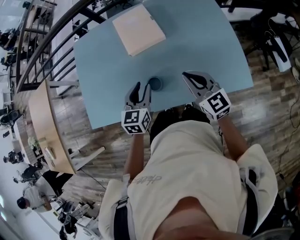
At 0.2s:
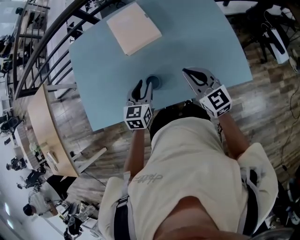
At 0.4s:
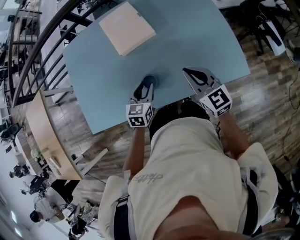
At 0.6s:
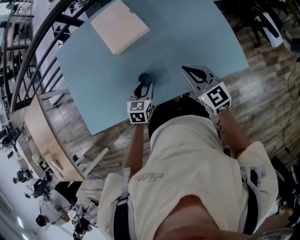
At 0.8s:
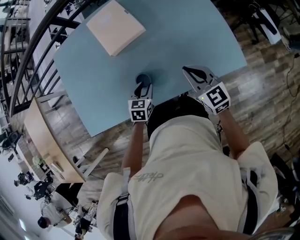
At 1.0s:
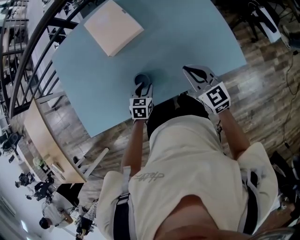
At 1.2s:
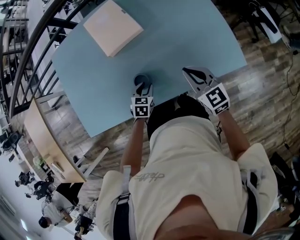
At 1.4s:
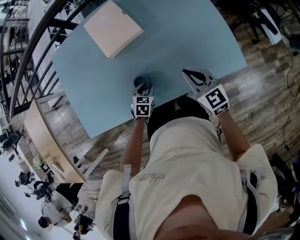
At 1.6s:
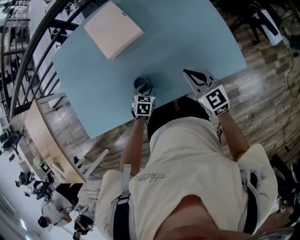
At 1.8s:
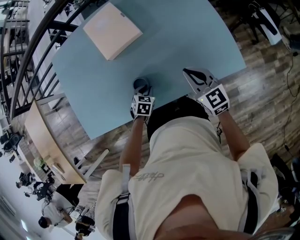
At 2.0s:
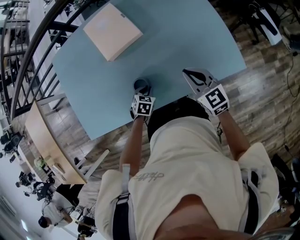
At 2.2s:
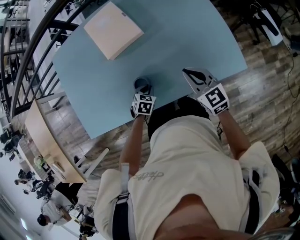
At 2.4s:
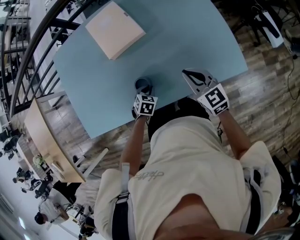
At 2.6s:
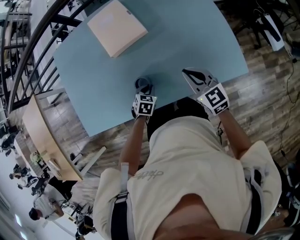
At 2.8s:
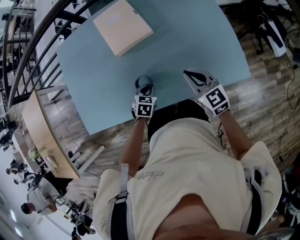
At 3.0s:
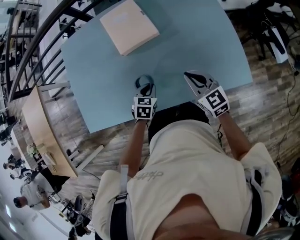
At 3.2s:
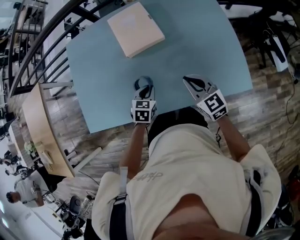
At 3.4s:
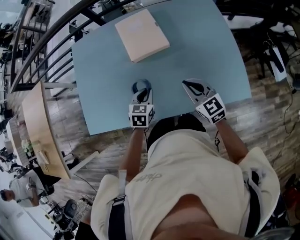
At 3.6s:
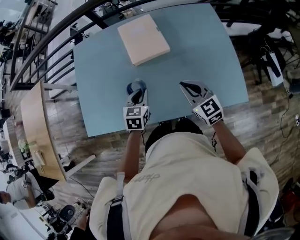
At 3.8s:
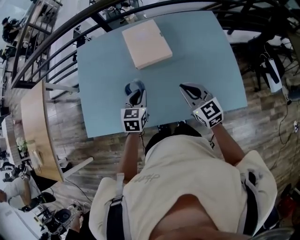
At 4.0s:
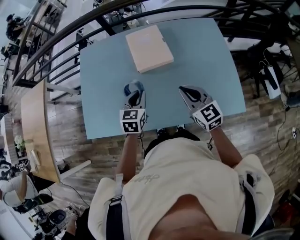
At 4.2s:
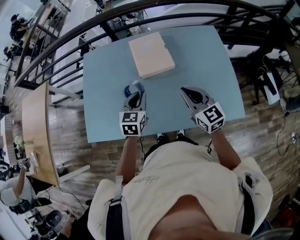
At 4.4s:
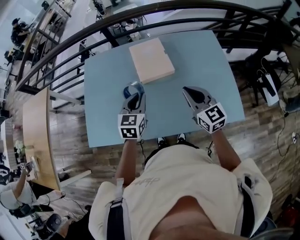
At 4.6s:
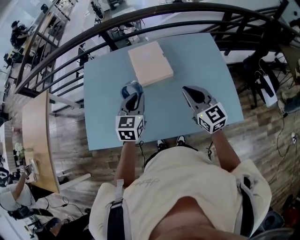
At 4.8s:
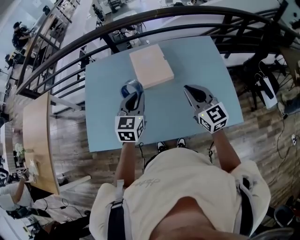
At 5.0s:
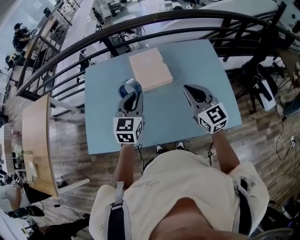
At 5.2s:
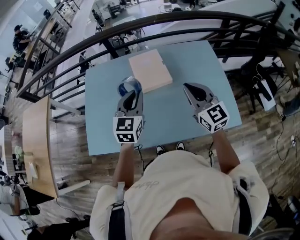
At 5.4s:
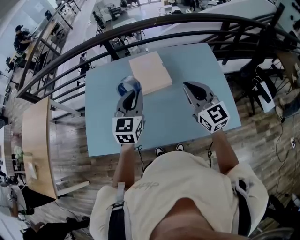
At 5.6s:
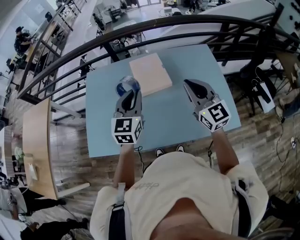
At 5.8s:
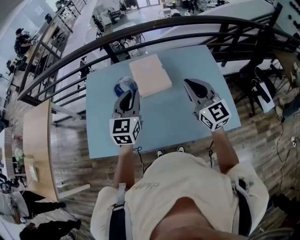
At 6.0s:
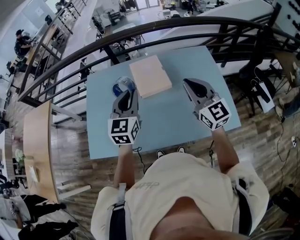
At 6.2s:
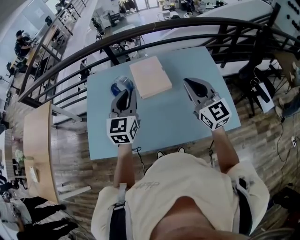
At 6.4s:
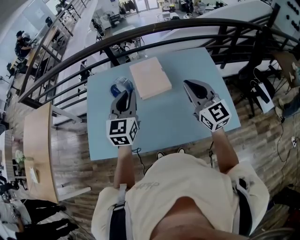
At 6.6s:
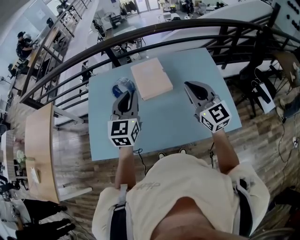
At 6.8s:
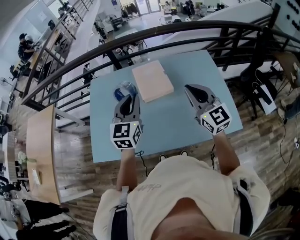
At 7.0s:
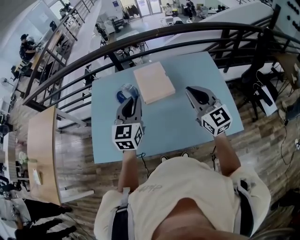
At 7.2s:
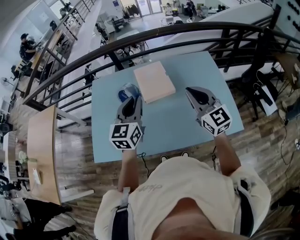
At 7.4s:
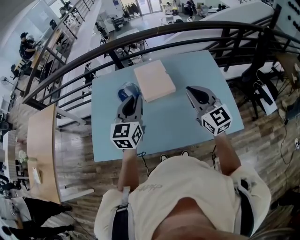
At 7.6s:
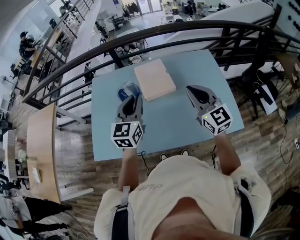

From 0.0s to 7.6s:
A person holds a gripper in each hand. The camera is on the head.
From 0.0s to 1.6s: The right gripper moves downward and to the right, approximately 10 cm, while the left gripper goes roughly 25 cm downward, and tilts its fingers approximately 30 degrees downward.
From 1.6s to 3.0s: The left gripper goes approximately 5 cm upward, and closes.
From 3.0s to 4.6s: The left gripper heads upward, covering about 25 cm, and points its fingers roughly 30 degrees further upward. Meanwhile the right gripper shifts roughly 15 cm upward.
From 4.6s to 6.0s: The two grippers go approximately 10 cm upward.
From 6.0s to 7.6s: The grippers make only small movements.

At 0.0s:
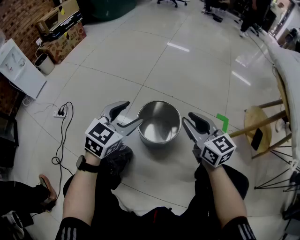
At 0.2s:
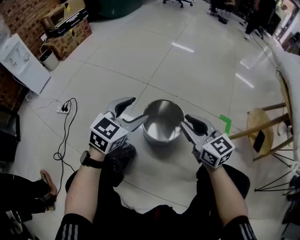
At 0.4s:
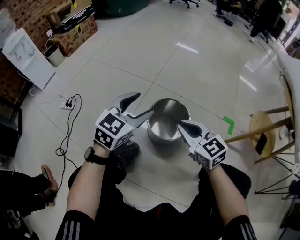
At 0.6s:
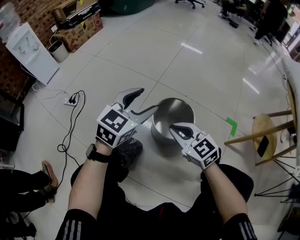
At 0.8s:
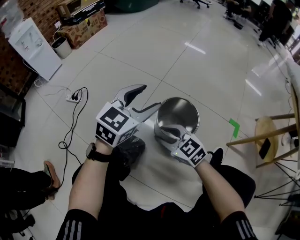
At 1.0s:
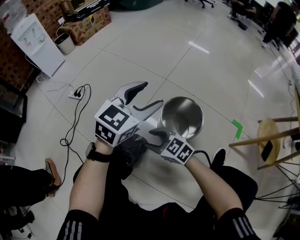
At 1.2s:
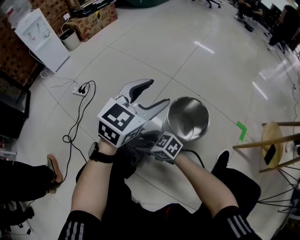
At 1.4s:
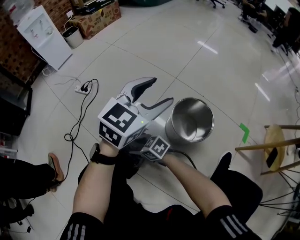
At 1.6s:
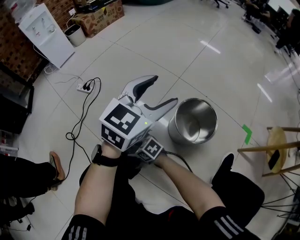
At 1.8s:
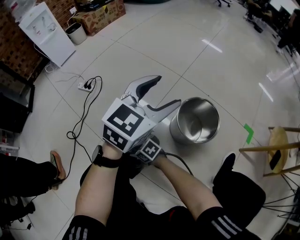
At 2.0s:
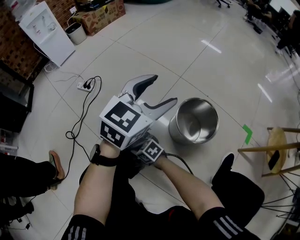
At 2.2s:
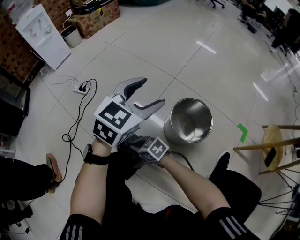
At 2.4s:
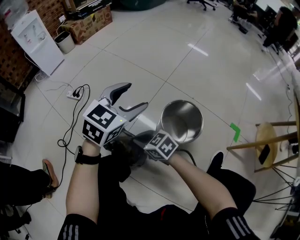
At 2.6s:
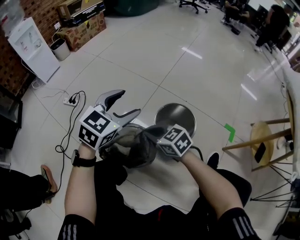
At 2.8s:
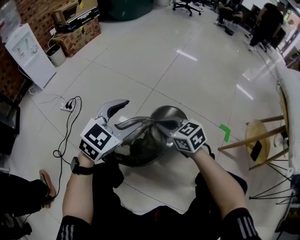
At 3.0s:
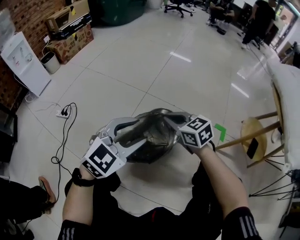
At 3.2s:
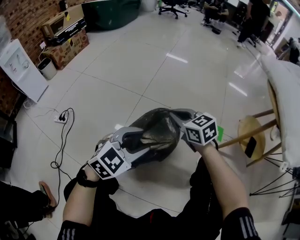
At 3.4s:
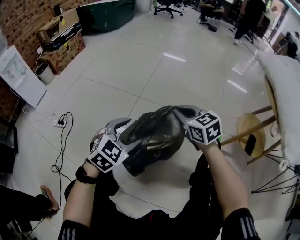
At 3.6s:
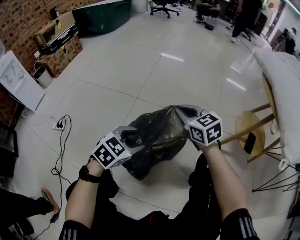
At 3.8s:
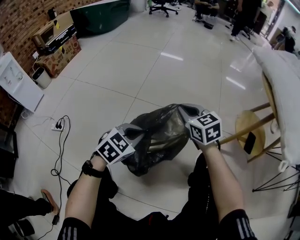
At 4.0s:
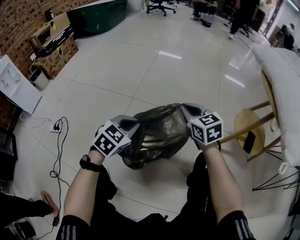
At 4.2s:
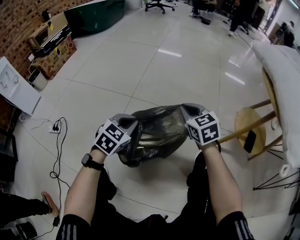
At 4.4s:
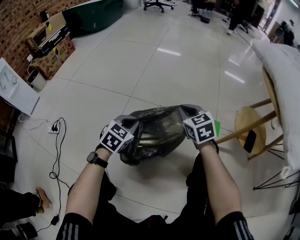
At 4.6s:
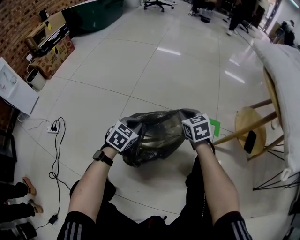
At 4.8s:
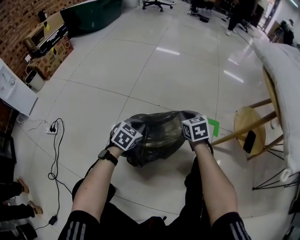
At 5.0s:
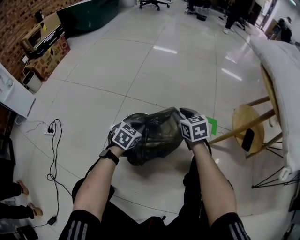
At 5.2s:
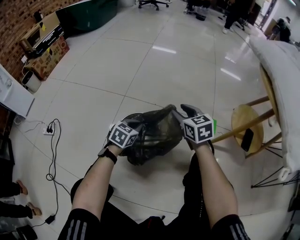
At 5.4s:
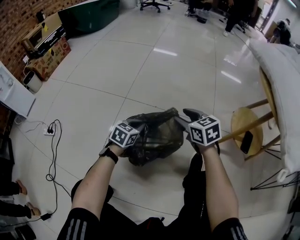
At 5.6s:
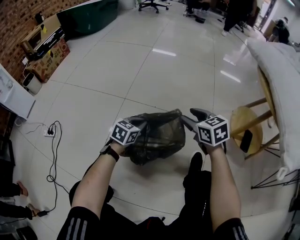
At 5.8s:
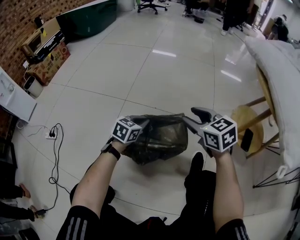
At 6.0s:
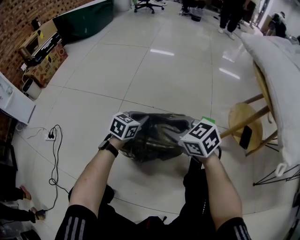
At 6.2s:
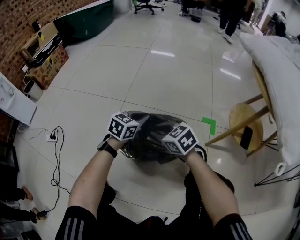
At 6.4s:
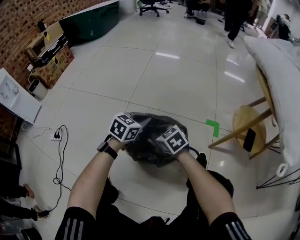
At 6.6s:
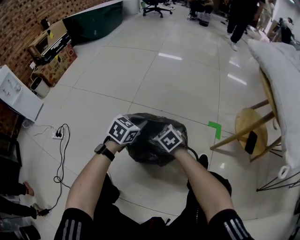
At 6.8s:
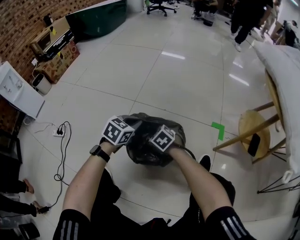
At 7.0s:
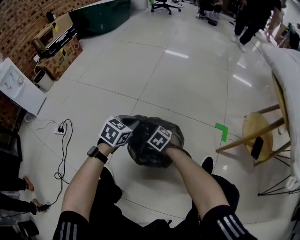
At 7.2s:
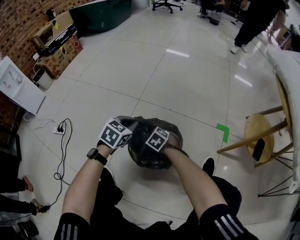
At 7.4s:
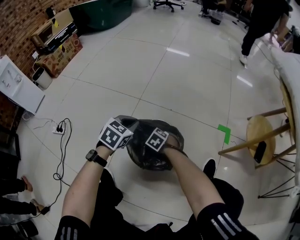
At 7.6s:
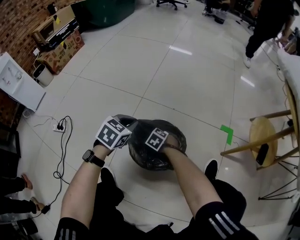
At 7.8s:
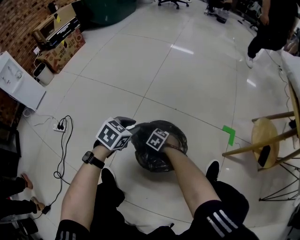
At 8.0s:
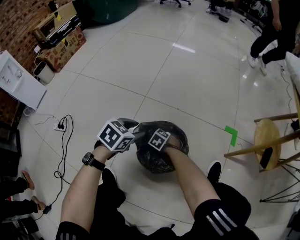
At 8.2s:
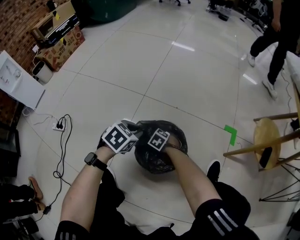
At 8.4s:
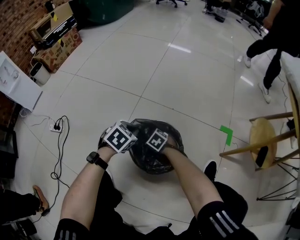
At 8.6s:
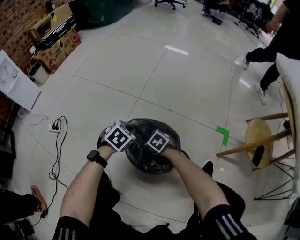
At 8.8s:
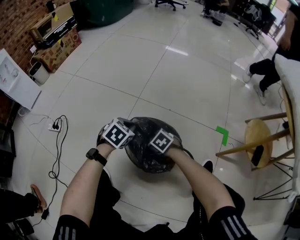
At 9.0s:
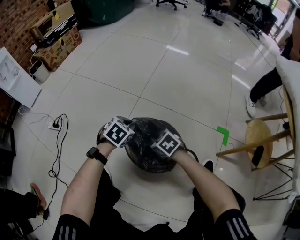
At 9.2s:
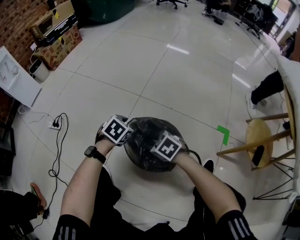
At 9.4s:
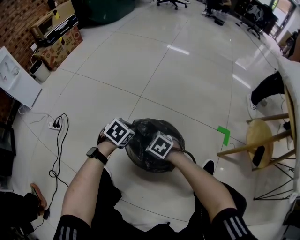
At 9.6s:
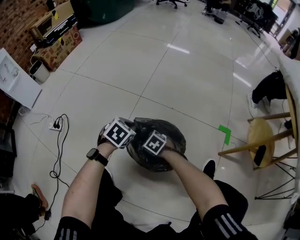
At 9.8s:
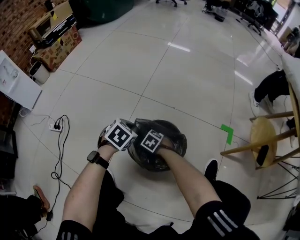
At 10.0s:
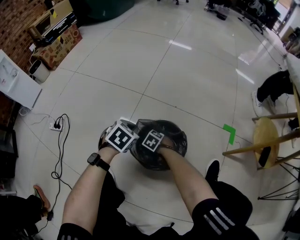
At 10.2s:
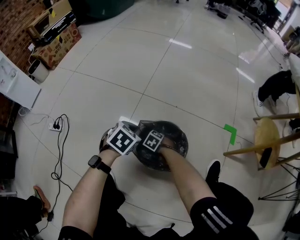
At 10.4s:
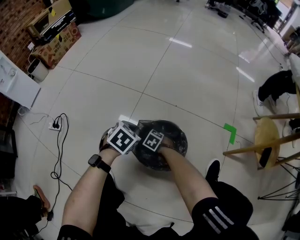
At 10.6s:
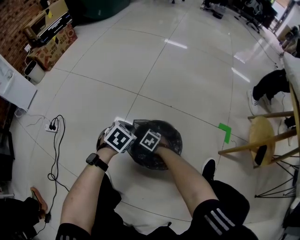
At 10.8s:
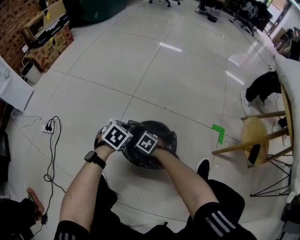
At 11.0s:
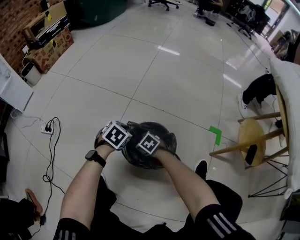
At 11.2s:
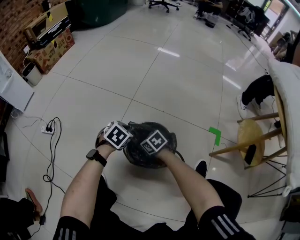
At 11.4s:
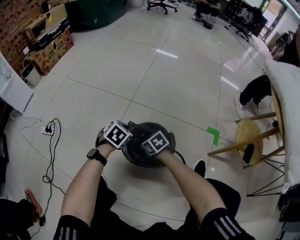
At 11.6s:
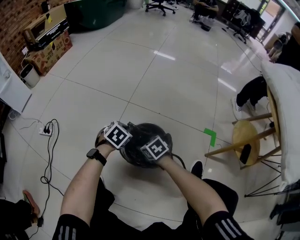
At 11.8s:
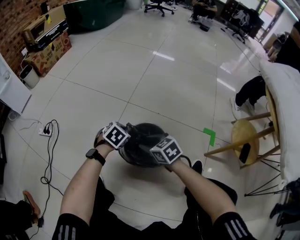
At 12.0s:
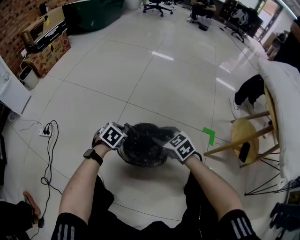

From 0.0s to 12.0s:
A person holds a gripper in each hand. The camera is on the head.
From 0.0s to 1.6s: The right gripper changes place by some 50 cm, swivels roughly 70 degrees, and opens its fingers; the left gripper changes place by roughly 10 cm.
From 1.6s to 3.0s: The left gripper ends up about 15 cm from where it was, and swivels roughly 30 degrees. The right gripper changes place by approximately 40 cm, rotates about 40 degrees, and closes.
From 3.0s to 4.4s: The right gripper goes roughly 20 cm to the right and forward, and changes its angle by about 30 degrees. The left gripper travels downward, forward and to the right by approximately 25 cm, turns by roughly 20 degrees, and closes up.
From 4.4s to 6.0s: The right gripper heads backward, covering roughly 10 cm, reaches approximately 10 cm downward, then returns, turns by roughly 20 degrees, and opens up; the left gripper shifts roughly 10 cm to the right and forward, and moves approximately 10 cm downward and comes back.
From 6.0s to 7.6s: The left gripper moves to the left, approximately 15 cm, while the right gripper moves downward and to the left, roughly 35 cm, and points its fingers roughly 40 degrees further downward.
From 7.6s to 9.0s: The right gripper shifts some 10 cm upward, while the left gripper travels downward by roughly 5 cm, and opens, then closes once more.
From 9.0s to 10.4s: The right gripper moves downward, some 20 cm; the left gripper opens, then closes again.
From 10.4s to 12.0s: The right gripper travels upward by about 25 cm, and rotates roughly 30 degrees.

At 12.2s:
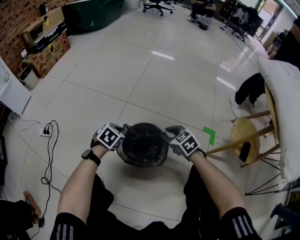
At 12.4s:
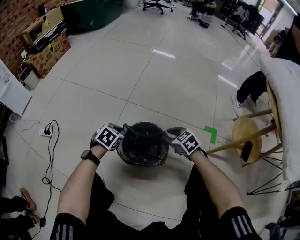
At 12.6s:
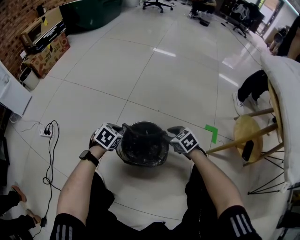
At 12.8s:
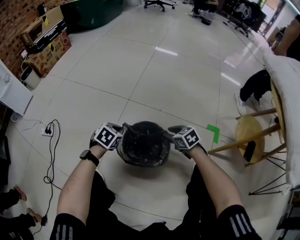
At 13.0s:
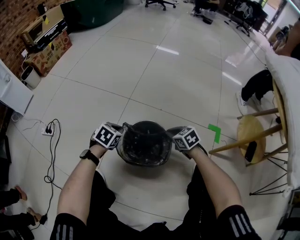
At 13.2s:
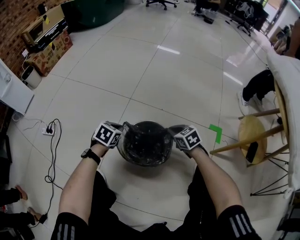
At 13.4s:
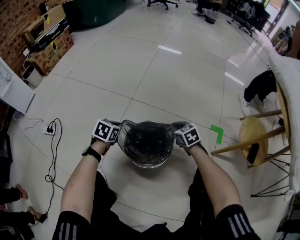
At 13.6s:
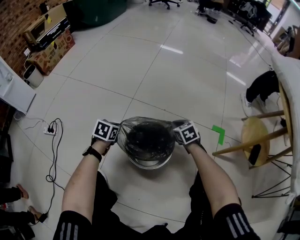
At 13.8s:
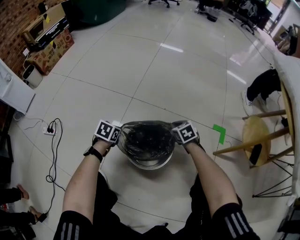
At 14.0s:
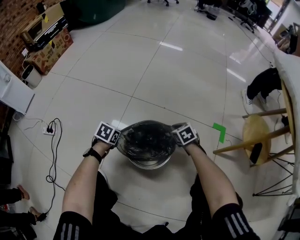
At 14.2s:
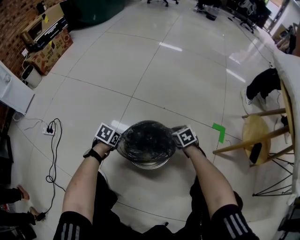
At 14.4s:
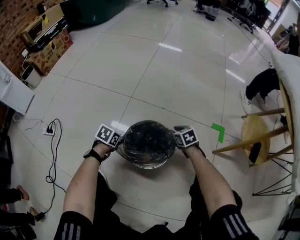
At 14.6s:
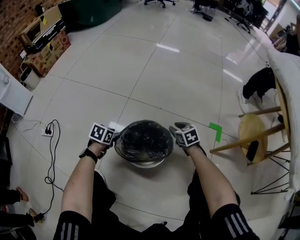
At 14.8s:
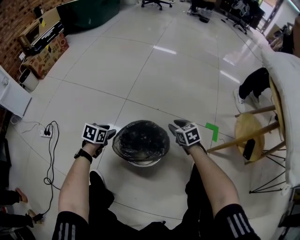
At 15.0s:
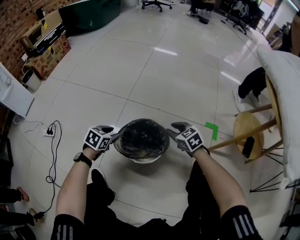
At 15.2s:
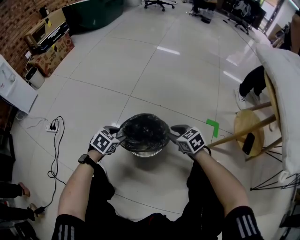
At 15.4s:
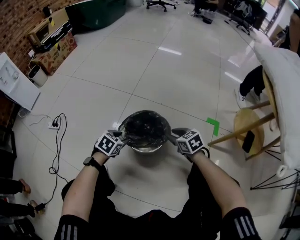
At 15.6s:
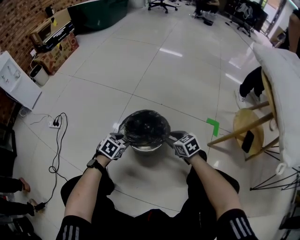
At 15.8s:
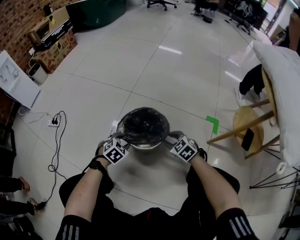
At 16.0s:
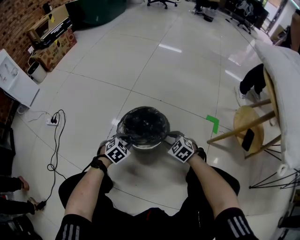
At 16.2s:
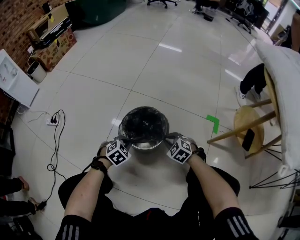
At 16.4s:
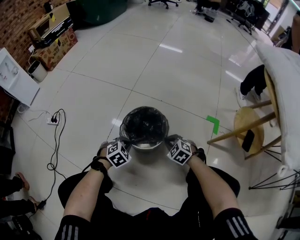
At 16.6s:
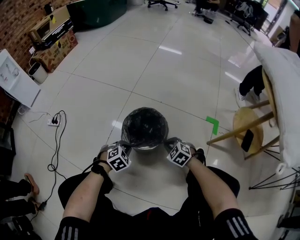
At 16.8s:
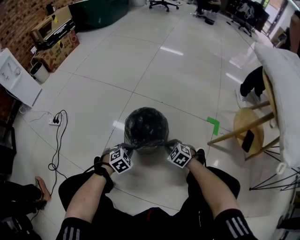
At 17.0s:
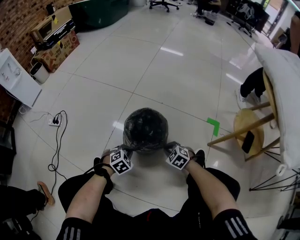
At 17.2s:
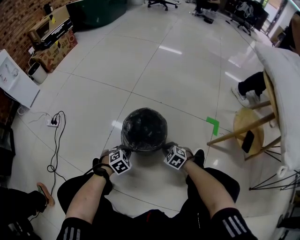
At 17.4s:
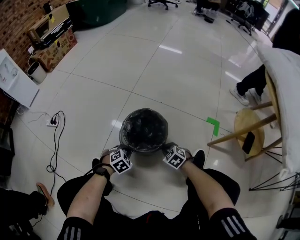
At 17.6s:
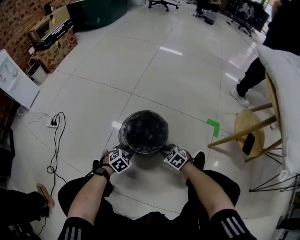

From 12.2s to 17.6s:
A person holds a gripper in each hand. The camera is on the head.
From 12.2s to 13.6s: The right gripper heads downward and forward, covering some 10 cm, and closes up. The left gripper is displaced downward by approximately 5 cm.
From 13.6s to 15.0s: The right gripper goes roughly 10 cm backward and upward, and opens up. Meanwhile the left gripper is displaced backward by about 5 cm, and opens.
From 15.0s to 16.2s: The right gripper moves backward and downward, approximately 15 cm, and swivels some 30 degrees; the left gripper heads backward and to the right, covering some 15 cm, changes its angle by about 30 degrees, and closes its fingers.
From 16.2s to 17.6s: The left gripper moves roughly 5 cm. Meanwhile the right gripper heads downward, covering approximately 5 cm.
